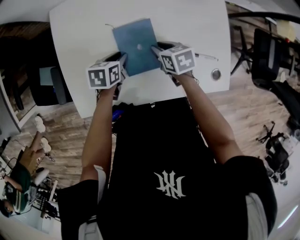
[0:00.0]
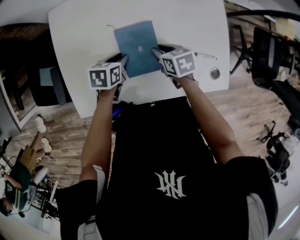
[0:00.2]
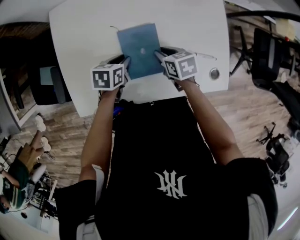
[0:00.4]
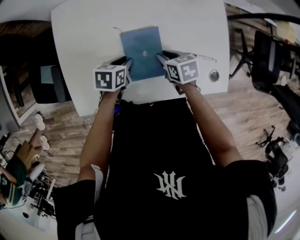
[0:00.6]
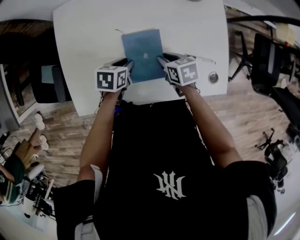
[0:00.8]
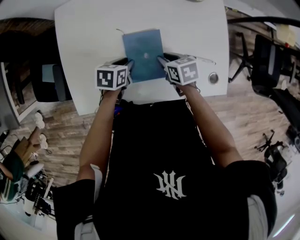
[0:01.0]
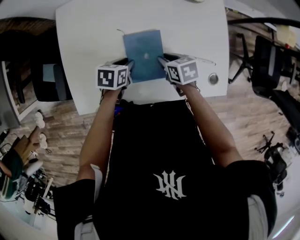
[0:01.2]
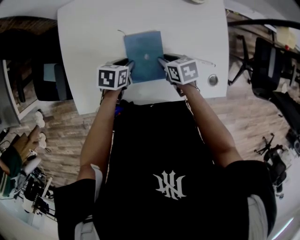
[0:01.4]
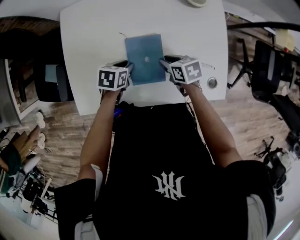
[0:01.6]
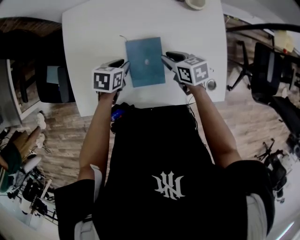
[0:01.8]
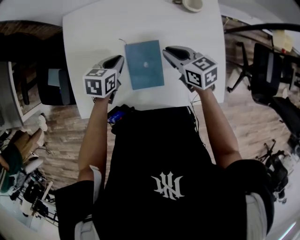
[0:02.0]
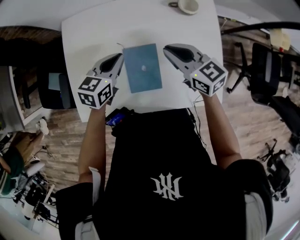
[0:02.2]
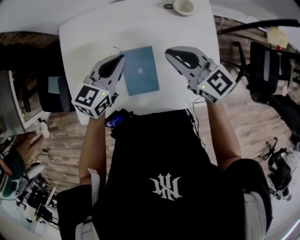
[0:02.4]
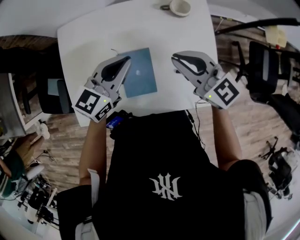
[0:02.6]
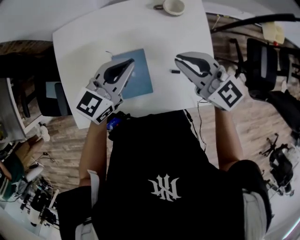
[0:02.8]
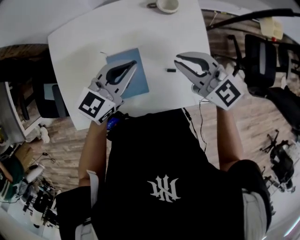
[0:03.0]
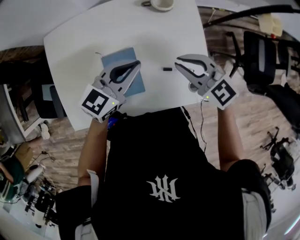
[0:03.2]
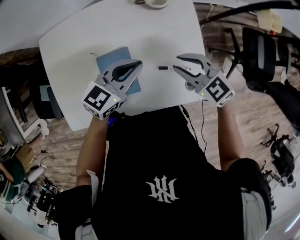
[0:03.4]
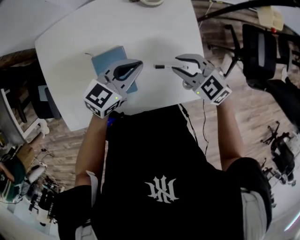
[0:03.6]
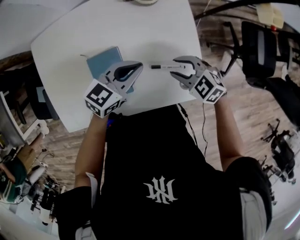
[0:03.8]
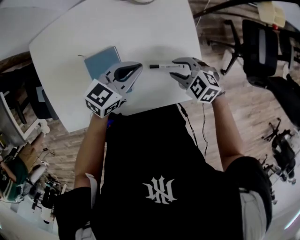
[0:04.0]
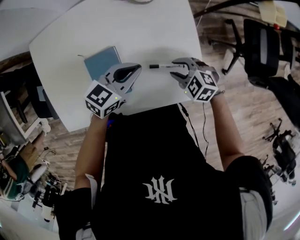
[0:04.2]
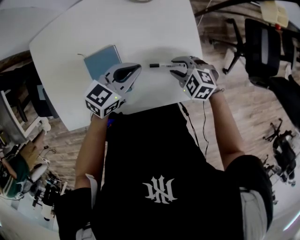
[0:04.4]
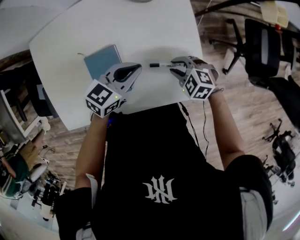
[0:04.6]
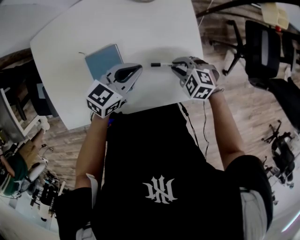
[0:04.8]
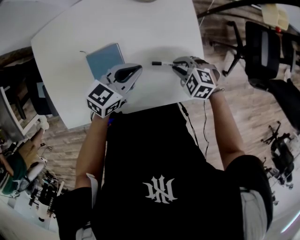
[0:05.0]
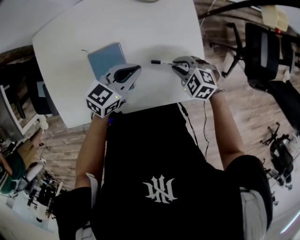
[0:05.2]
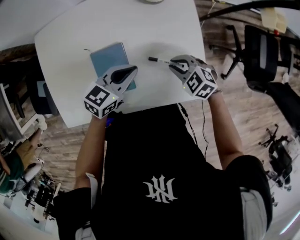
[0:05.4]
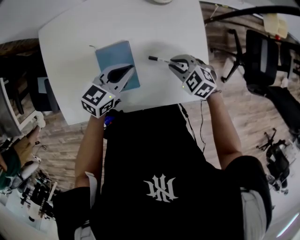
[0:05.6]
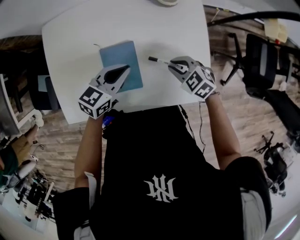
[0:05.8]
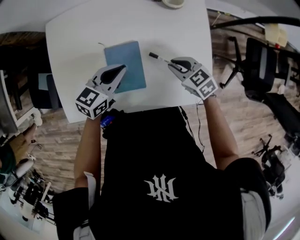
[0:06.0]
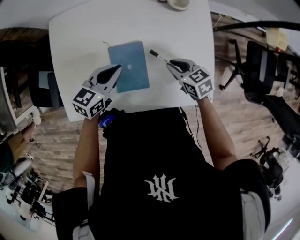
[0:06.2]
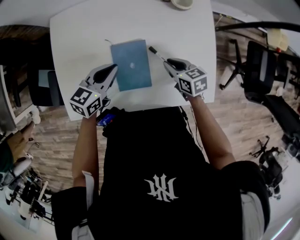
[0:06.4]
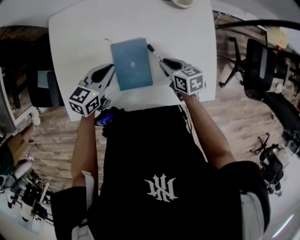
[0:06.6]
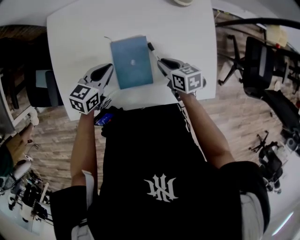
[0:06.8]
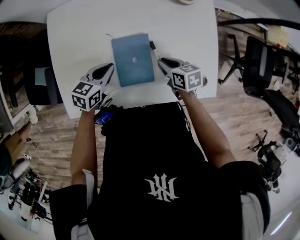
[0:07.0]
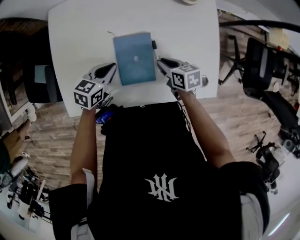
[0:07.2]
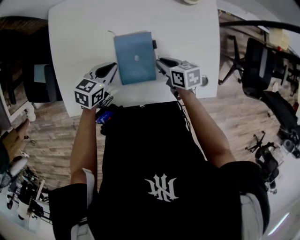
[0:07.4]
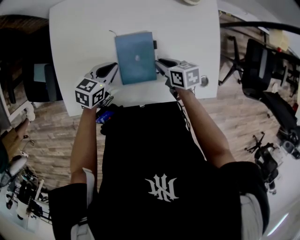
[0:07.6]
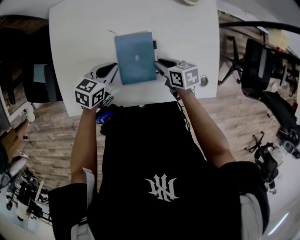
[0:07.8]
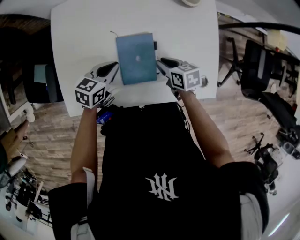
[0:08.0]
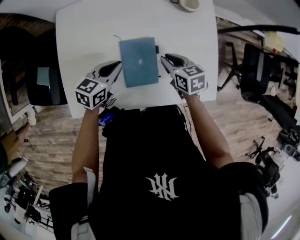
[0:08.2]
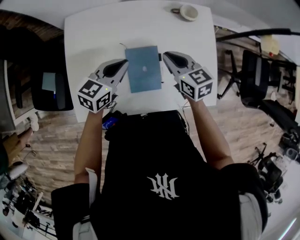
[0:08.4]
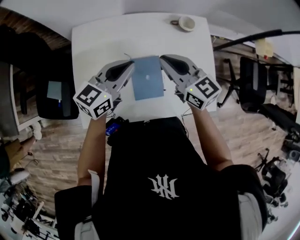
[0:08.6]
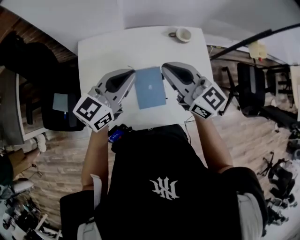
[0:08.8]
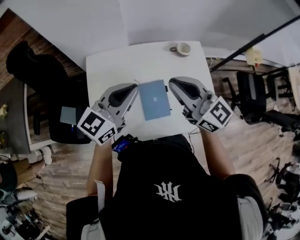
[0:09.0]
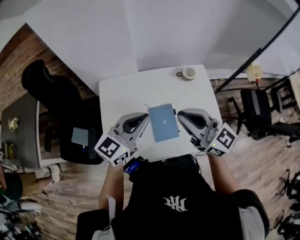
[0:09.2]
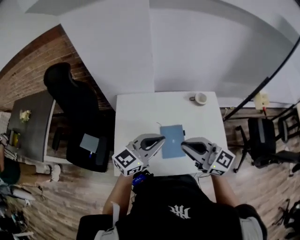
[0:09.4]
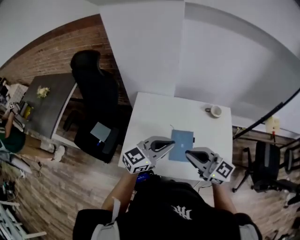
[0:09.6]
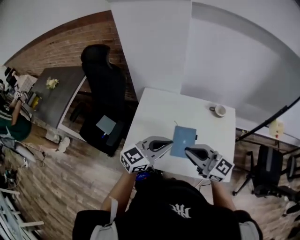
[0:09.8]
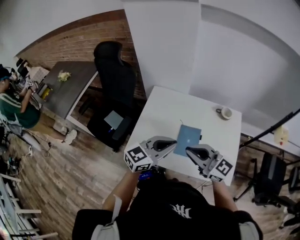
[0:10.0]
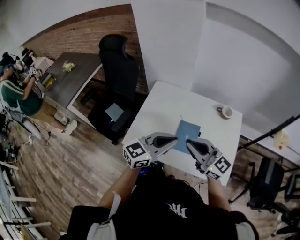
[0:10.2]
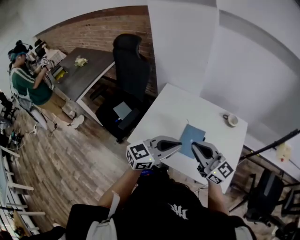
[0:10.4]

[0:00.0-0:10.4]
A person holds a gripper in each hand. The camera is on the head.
0:00.0 to 0:01.4: The grippers make only small movements.
0:01.4 to 0:03.0: The grippers both shift upward and to the right by about 25 cm. The left gripper angles its fingers upward, by approximately 40 degrees, and closes up. Meanwhile the right gripper tips its fingers upward by about 40 degrees.
0:03.0 to 0:04.4: The left gripper goes approximately 10 cm downward, and swivels about 20 degrees. The right gripper heads downward, covering approximately 25 cm, tips its fingers downward by roughly 40 degrees, and opens.
0:04.4 to 0:06.0: The left gripper moves roughly 15 cm; the right gripper ends up some 10 cm from where it was, and turns by about 30 degrees.
0:06.0 to 0:07.4: Both grippers move to the left and downward, approximately 10 cm. The right gripper changes its angle by roughly 30 degrees.
0:07.4 to 0:09.0: Both grippers move upward, approximately 35 cm. The left gripper tilts its fingers approximately 40 degrees upward. Meanwhile the right gripper points its fingers approximately 50 degrees further upward.
0:09.0 to 0:10.4: The two grippers go about 15 cm backward. The right gripper swivels roughly 30 degrees.

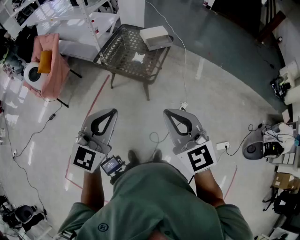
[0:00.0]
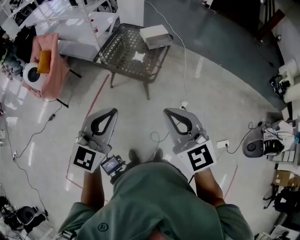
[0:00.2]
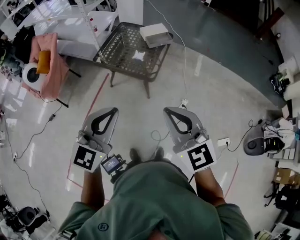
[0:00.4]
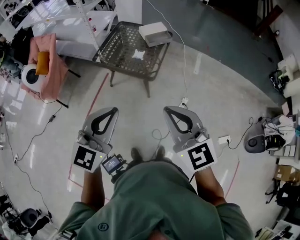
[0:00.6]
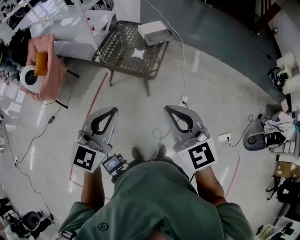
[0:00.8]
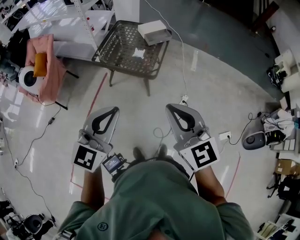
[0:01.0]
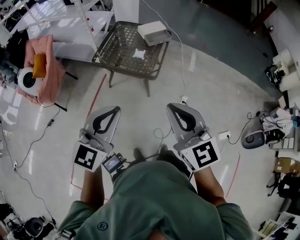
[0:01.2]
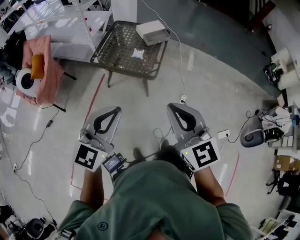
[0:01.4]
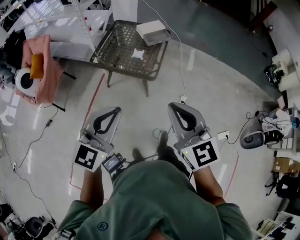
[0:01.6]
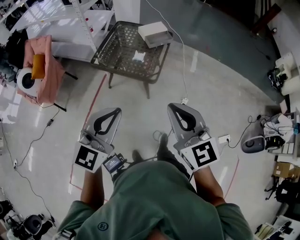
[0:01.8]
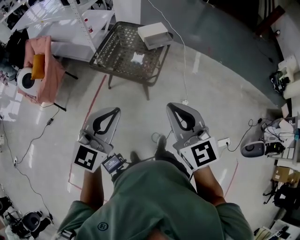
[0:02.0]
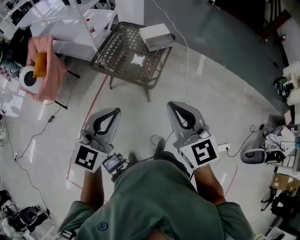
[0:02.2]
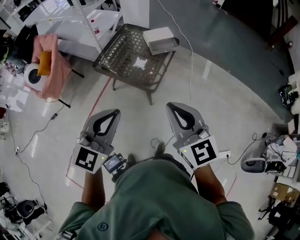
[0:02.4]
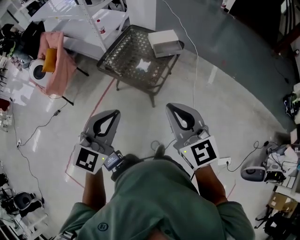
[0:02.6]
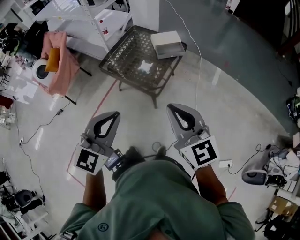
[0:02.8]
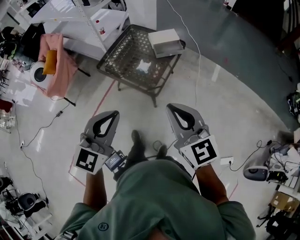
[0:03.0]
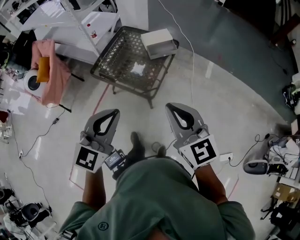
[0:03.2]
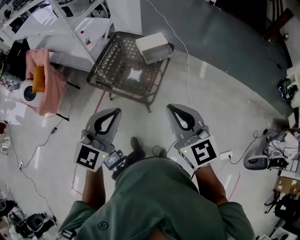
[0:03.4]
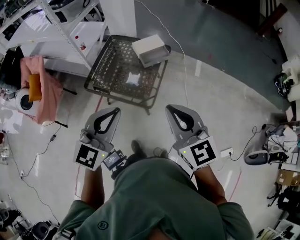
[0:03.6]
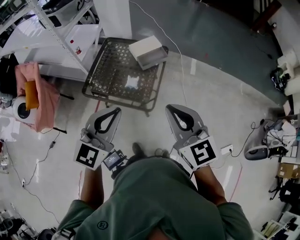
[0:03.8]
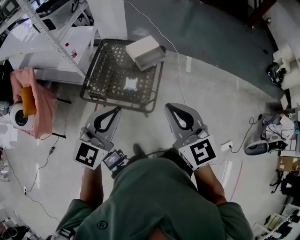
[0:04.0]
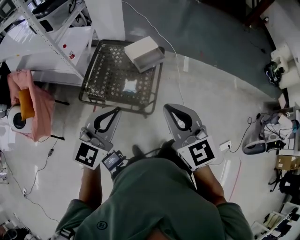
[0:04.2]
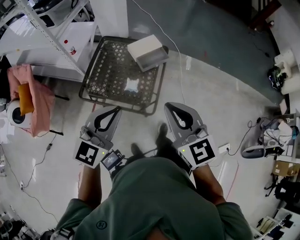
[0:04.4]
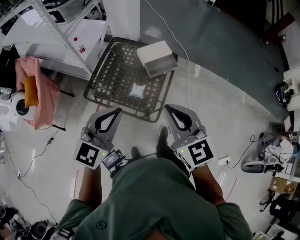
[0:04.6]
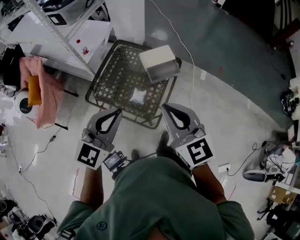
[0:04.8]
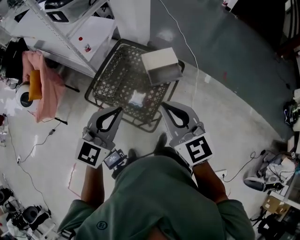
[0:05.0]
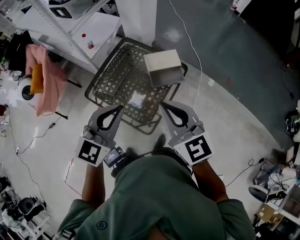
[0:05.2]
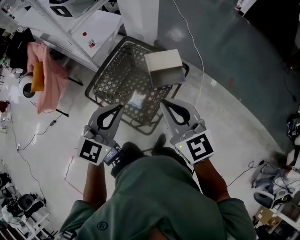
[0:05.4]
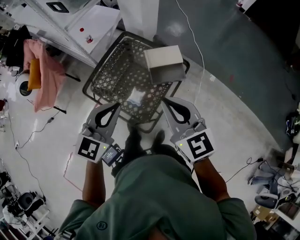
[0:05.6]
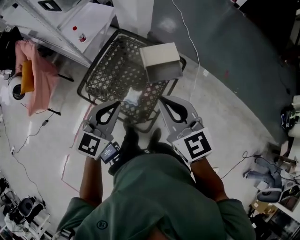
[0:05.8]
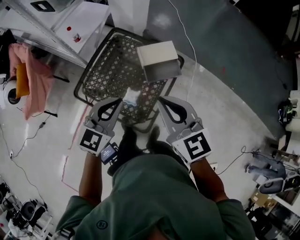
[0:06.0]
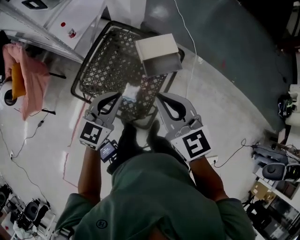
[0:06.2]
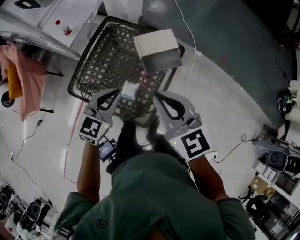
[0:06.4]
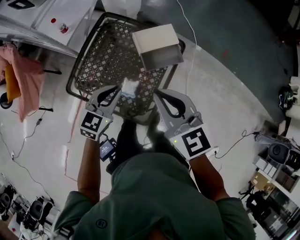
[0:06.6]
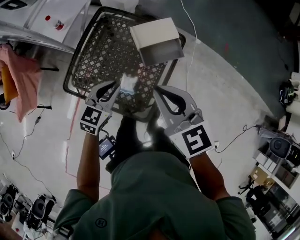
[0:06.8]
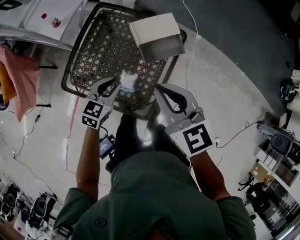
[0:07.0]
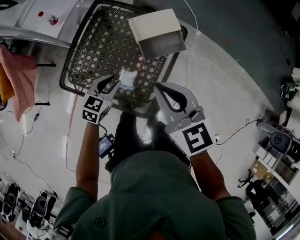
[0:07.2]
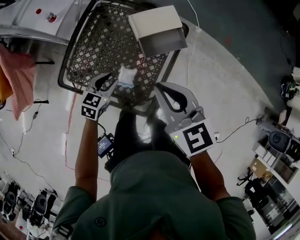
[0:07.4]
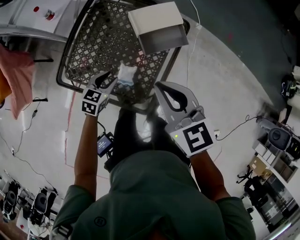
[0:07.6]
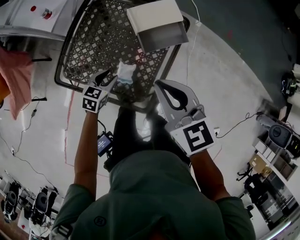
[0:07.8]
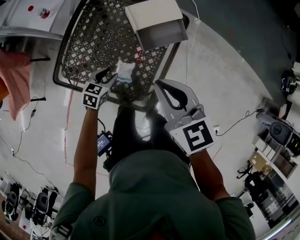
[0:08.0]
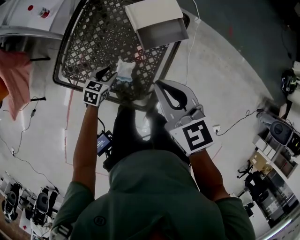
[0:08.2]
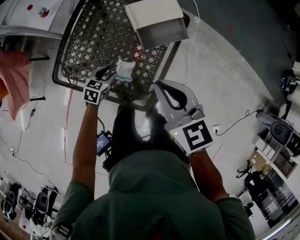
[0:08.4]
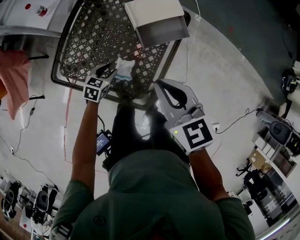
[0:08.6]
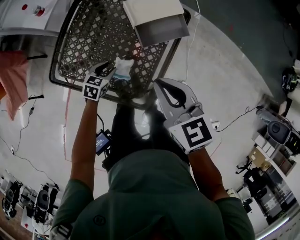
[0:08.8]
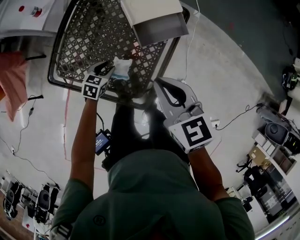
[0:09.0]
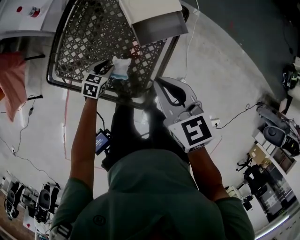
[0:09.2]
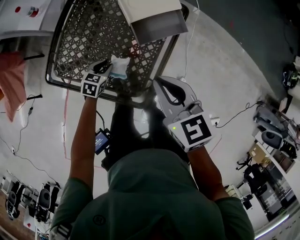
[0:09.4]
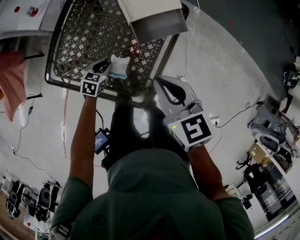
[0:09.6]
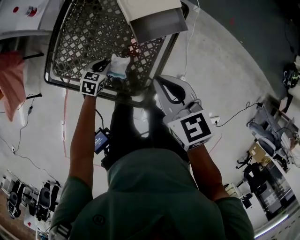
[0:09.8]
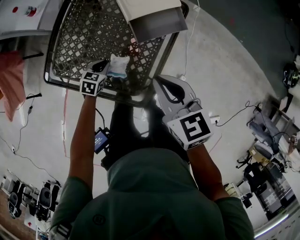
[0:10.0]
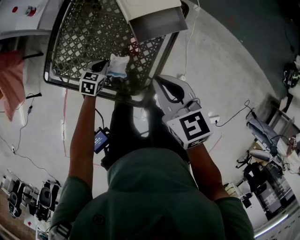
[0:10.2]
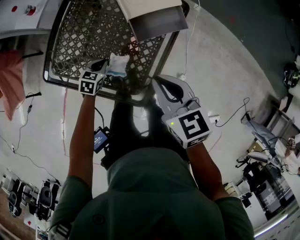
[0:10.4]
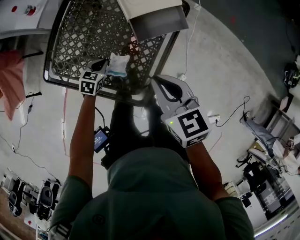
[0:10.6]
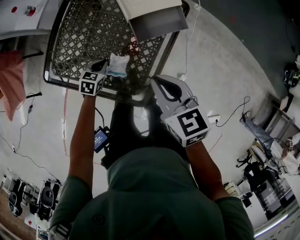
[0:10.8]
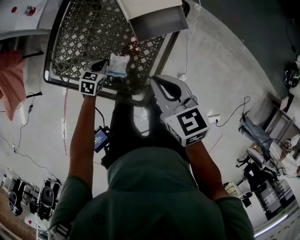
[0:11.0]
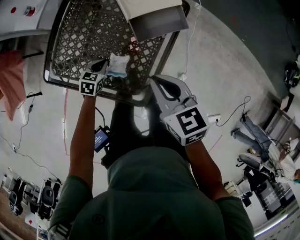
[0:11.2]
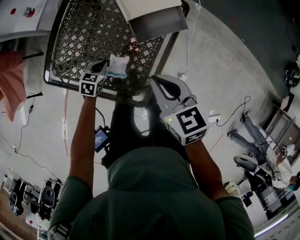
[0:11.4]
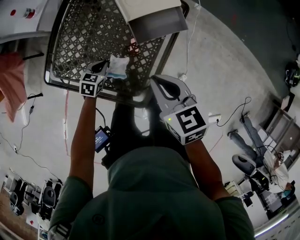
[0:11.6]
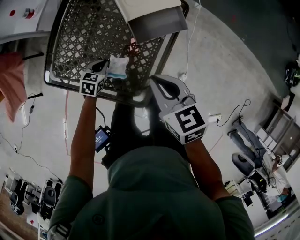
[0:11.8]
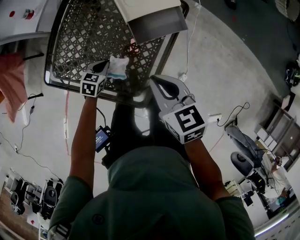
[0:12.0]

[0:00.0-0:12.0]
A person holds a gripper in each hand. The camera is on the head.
0:00.0 to 0:01.6: Both grippers travel together to the left, about 10 cm.
0:01.6 to 0:03.0: The right gripper is displaced forward and to the right by approximately 25 cm; the left gripper goes about 20 cm to the right and forward.
0:03.0 to 0:04.4: The two grippers go roughly 25 cm forward and to the left.
0:04.4 to 0:06.0: The right gripper moves forward, roughly 25 cm, while the left gripper shifts approximately 25 cm forward and downward.
0:06.0 to 0:07.6: The right gripper goes about 15 cm downward and forward, while the left gripper shifts some 30 cm downward, turns by approximately 30 degrees, and opens up.
0:07.6 to 0:09.0: The left gripper moves downward, roughly 10 cm, while the right gripper goes some 5 cm downward.
0:09.0 to 0:10.4: The left gripper closes up.
0:10.4 to 0:12.0: There are only small adjustments of the grippers.

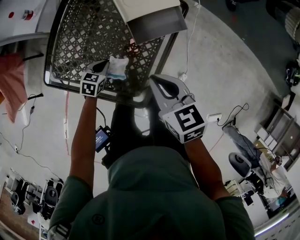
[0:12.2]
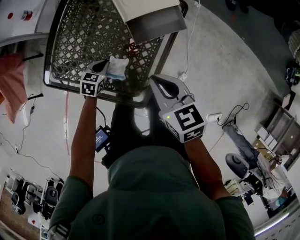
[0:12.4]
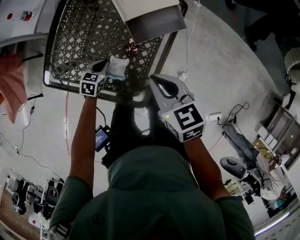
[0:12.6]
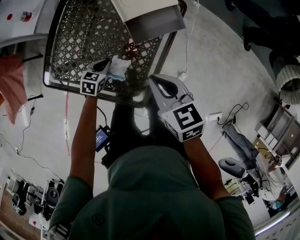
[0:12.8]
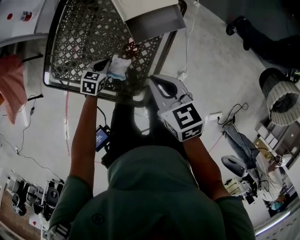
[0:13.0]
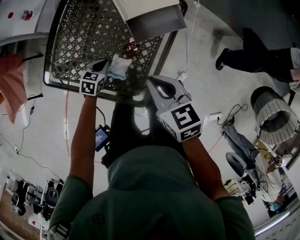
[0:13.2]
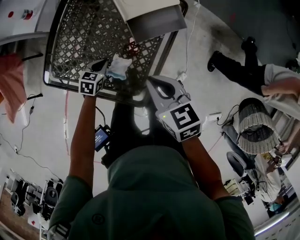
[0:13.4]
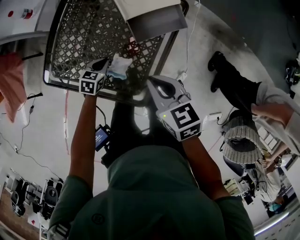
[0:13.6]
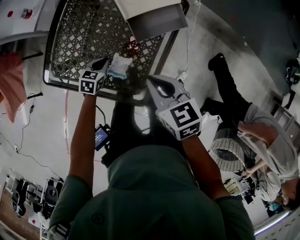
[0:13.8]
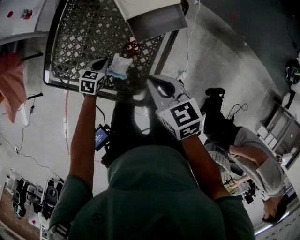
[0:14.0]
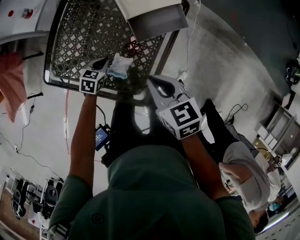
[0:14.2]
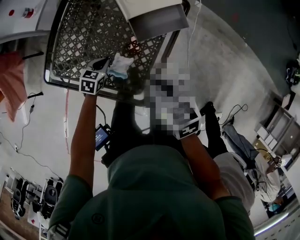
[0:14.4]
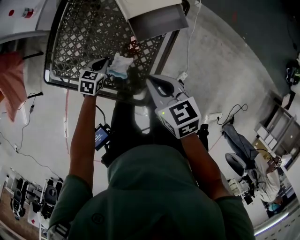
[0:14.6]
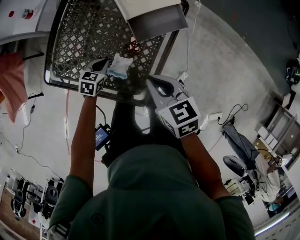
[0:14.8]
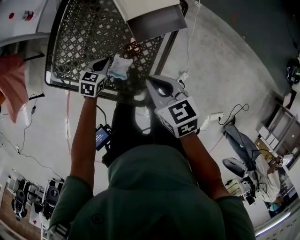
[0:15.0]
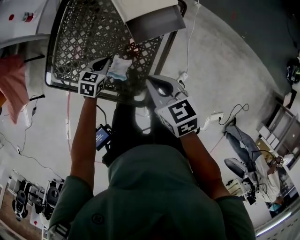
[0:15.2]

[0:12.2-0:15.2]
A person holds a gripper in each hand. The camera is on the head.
0:12.2 to 0:15.2: The grippers move only a little.
